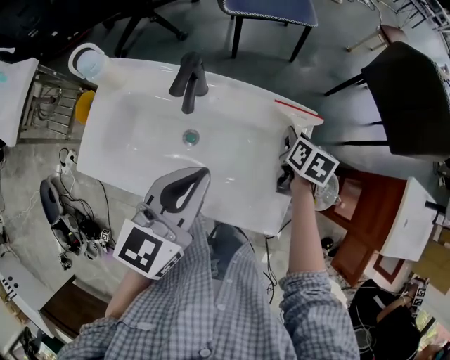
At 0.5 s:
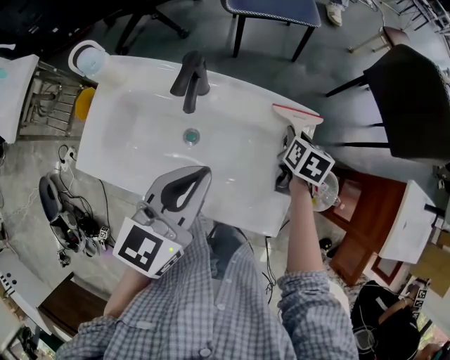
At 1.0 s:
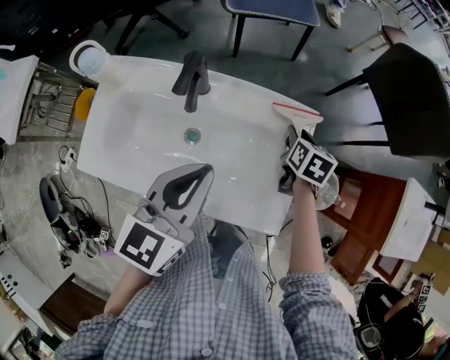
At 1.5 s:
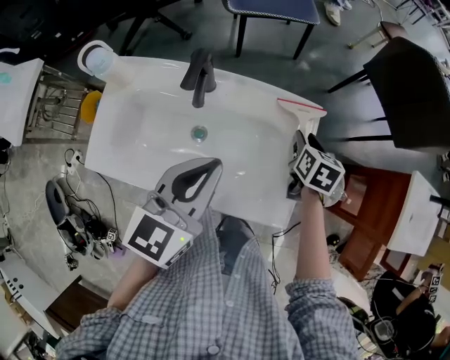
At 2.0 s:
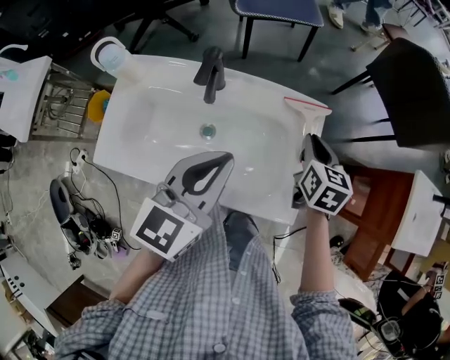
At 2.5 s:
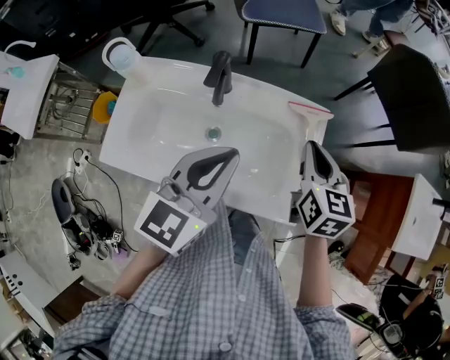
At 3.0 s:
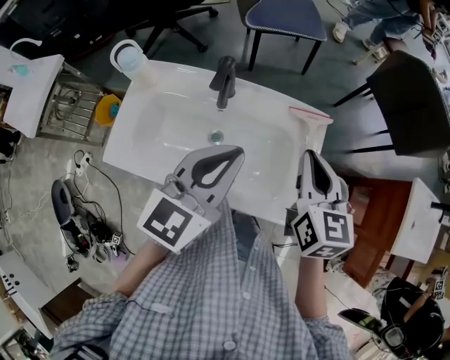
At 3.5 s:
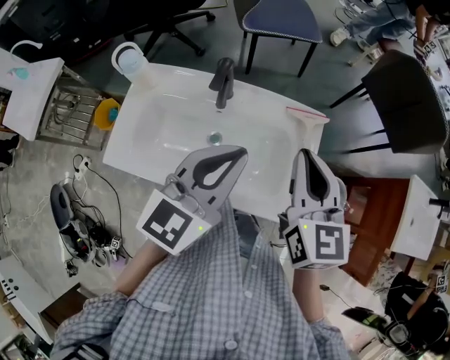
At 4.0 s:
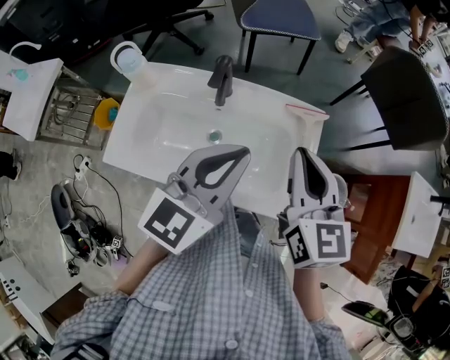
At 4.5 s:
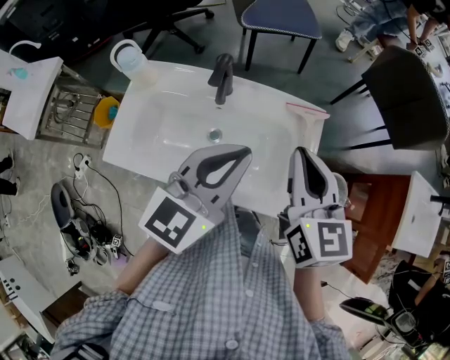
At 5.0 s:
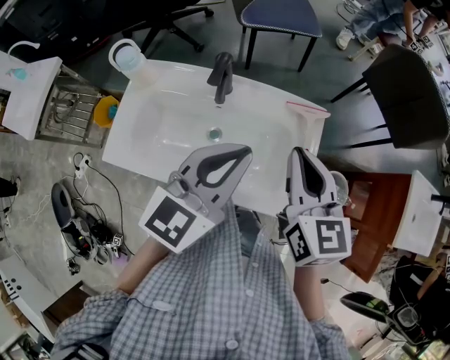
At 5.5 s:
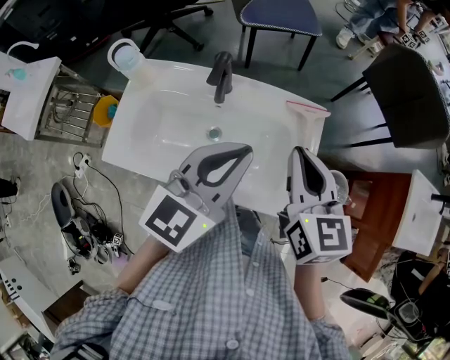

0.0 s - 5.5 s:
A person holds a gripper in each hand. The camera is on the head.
0.0 s - 2.0 s: The right gripper moves upward and backward, approximately 10 cm.
2.0 s - 3.5 s: The right gripper goes approximately 20 cm upward, backward and to the left, and changes its angle by roughly 30 degrees. The left gripper shifts by about 5 cm.
3.5 s - 5.5 s: The grippers move only a little.

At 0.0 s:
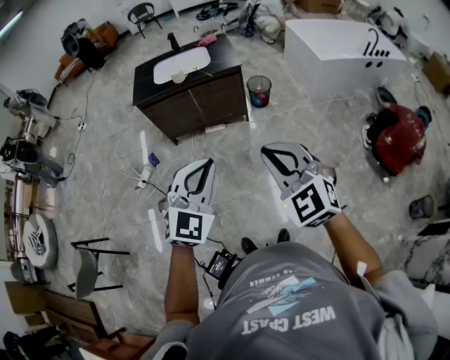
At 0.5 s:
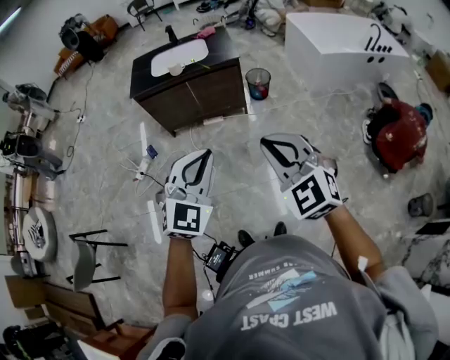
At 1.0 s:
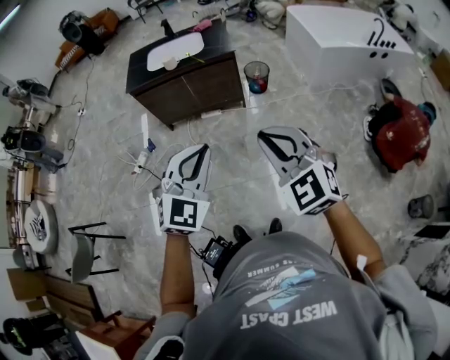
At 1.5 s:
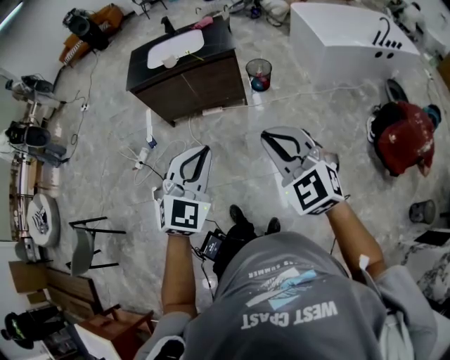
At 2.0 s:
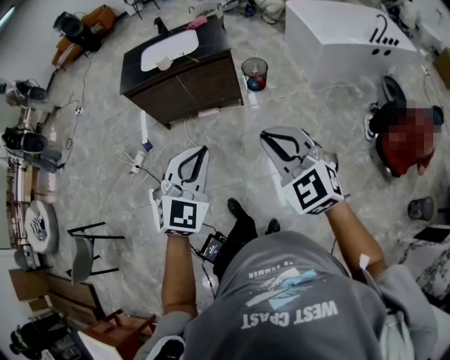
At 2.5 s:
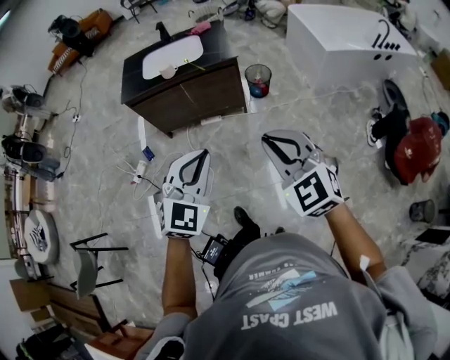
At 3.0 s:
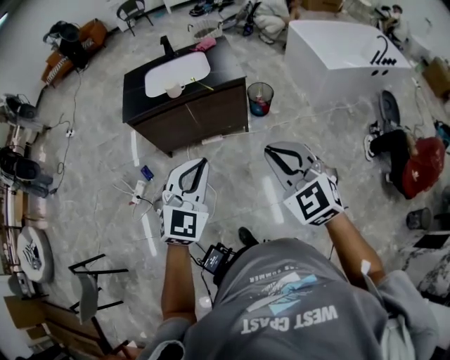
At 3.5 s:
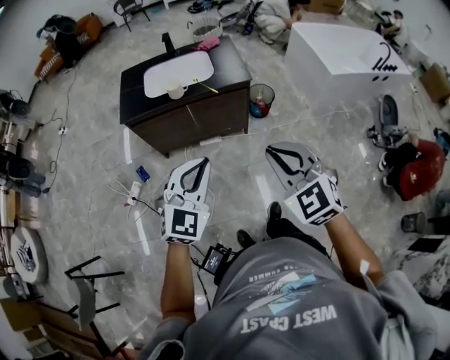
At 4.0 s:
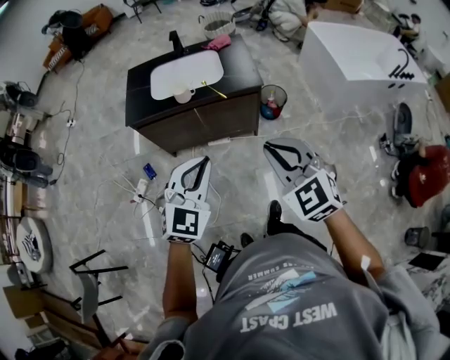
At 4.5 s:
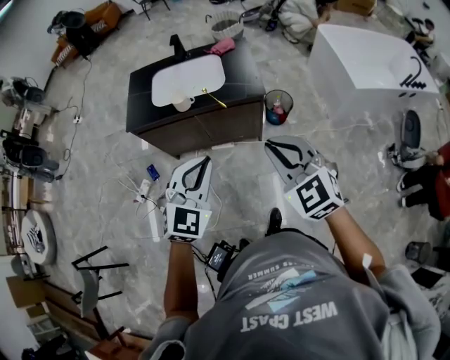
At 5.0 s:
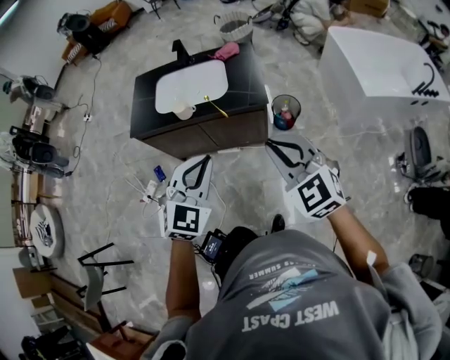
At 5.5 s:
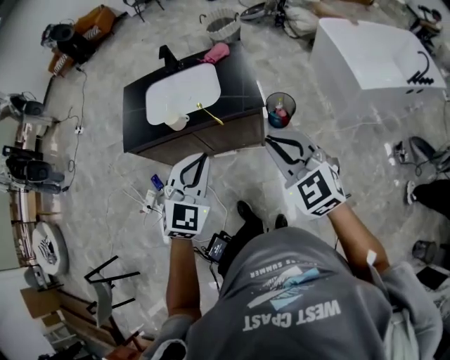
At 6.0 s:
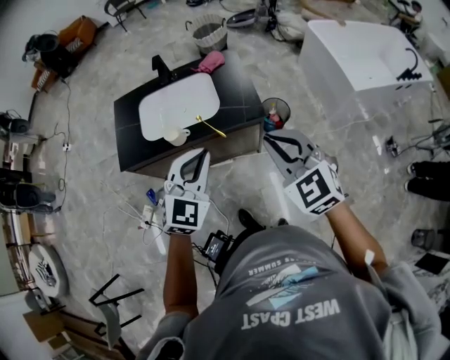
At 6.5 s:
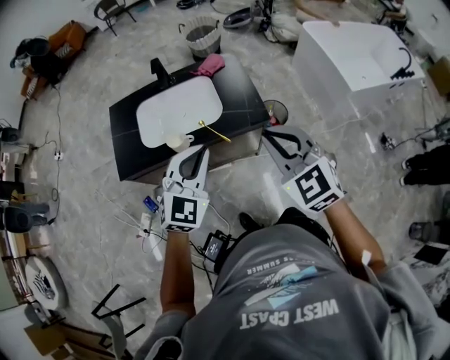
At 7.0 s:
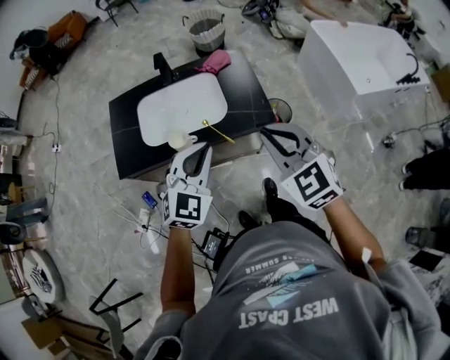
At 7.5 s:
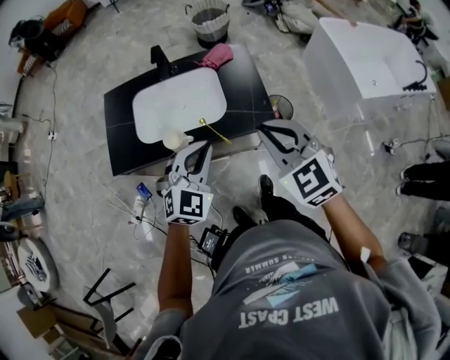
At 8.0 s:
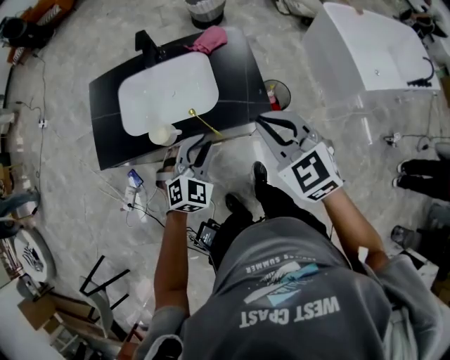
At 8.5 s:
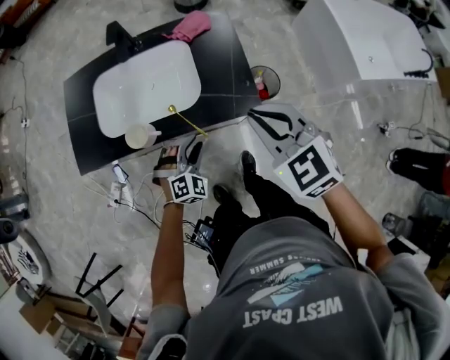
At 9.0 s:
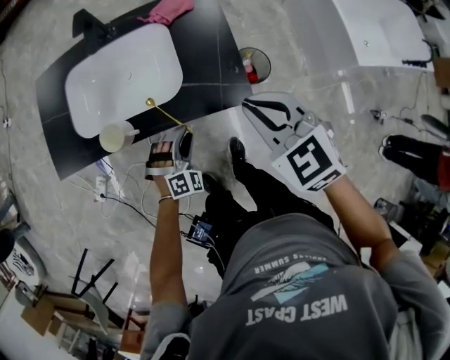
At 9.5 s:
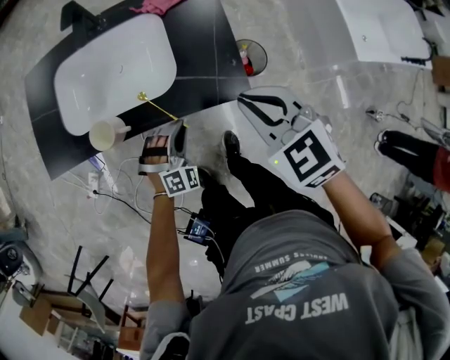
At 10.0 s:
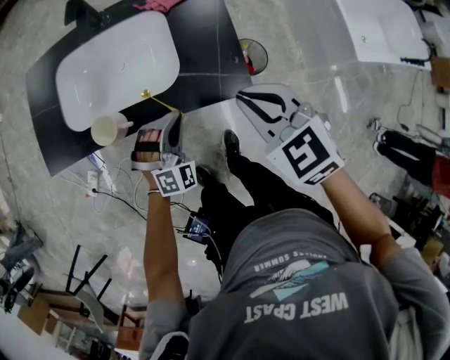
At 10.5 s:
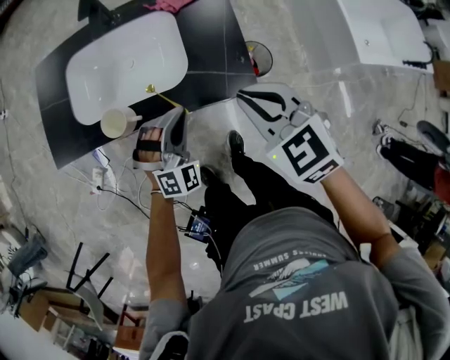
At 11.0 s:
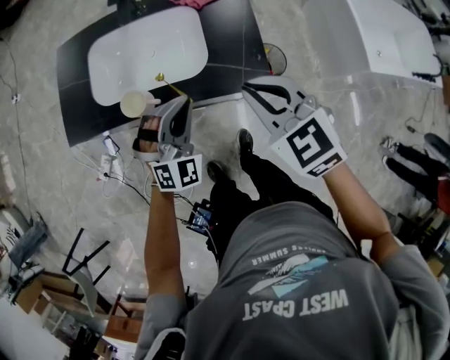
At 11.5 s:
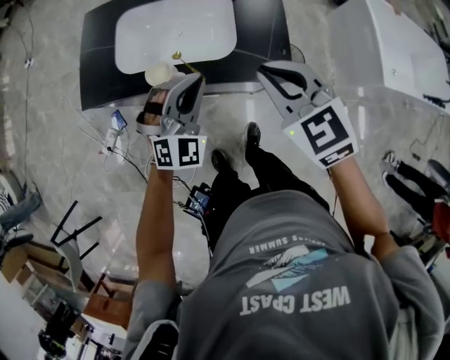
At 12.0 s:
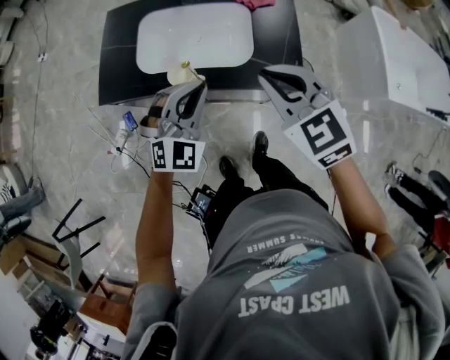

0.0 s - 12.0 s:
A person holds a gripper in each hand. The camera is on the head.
0.0 s - 2.0 s: Both grippers travel together to the right and forward, roughly 10 cm.
2.0 s - 4.0 s: Both grippers travel together forward and to the left, roughly 30 cm.
4.0 s - 6.0 s: Both grippers move forward, roughly 25 cm.
6.0 s - 8.0 s: The right gripper travels forward and downward by roughly 15 cm, while the left gripper heads downward and forward, covering roughly 20 cm, and opens up.
8.0 s - 10.0 s: The two grippers go about 15 cm downward. The left gripper swivels roughly 20 degrees, and closes its fingers.
10.0 s - 12.0 s: The right gripper is displaced to the left and upward by approximately 15 cm. Meanwhile the left gripper travels upward and to the left by some 20 cm, and turns by some 20 degrees.

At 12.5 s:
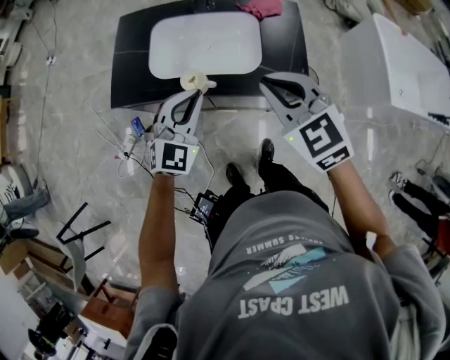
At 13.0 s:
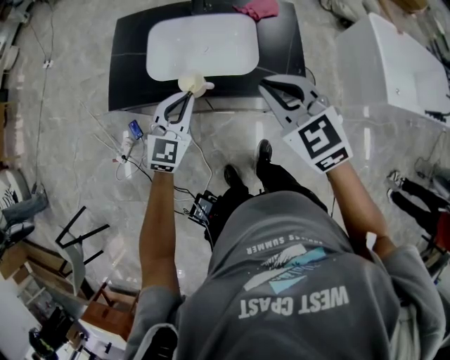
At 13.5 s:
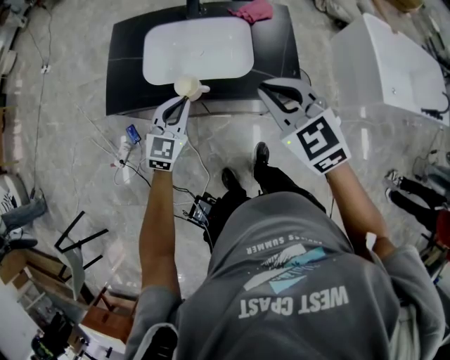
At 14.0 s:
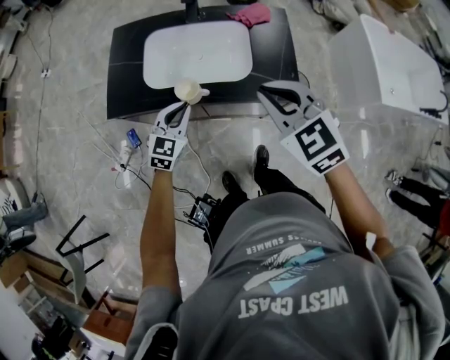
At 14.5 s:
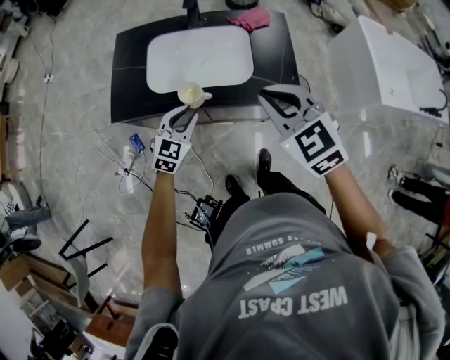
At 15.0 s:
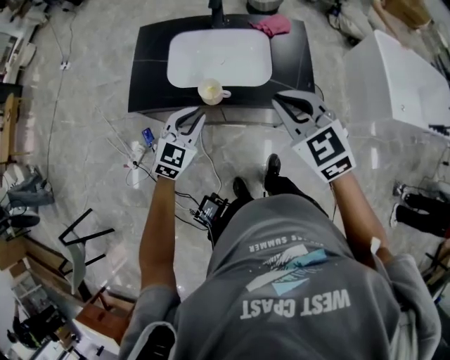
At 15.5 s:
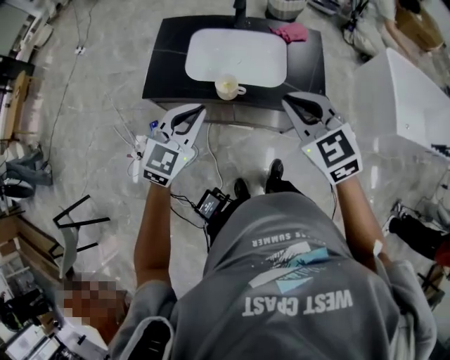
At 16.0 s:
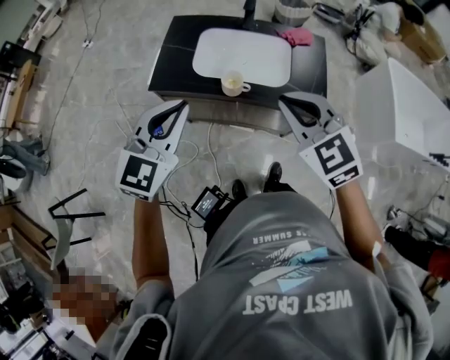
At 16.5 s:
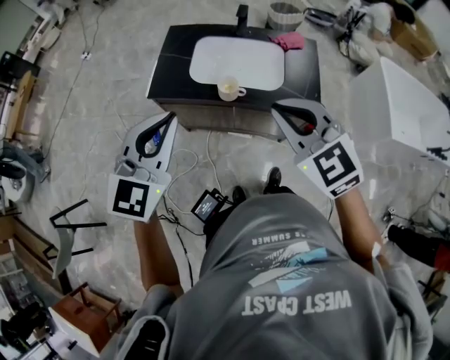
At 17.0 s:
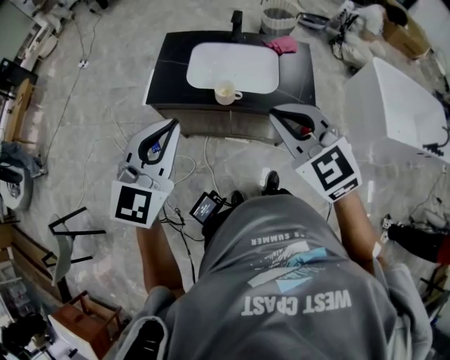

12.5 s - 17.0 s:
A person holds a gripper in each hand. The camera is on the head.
12.5 s - 14.5 s: The left gripper shifts approximately 10 cm downward, rotates some 20 degrees, and opens up.
14.5 s - 17.0 s: The right gripper goes roughly 20 cm backward, upward and to the left. Meanwhile the left gripper moves upward and backward, approximately 35 cm, swivels about 20 degrees, and closes.

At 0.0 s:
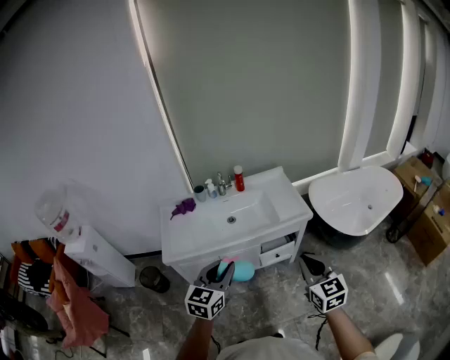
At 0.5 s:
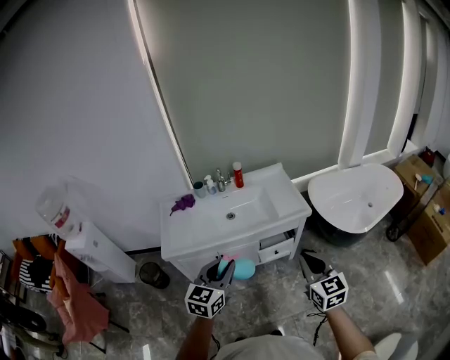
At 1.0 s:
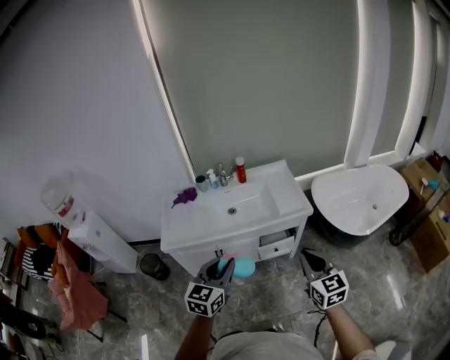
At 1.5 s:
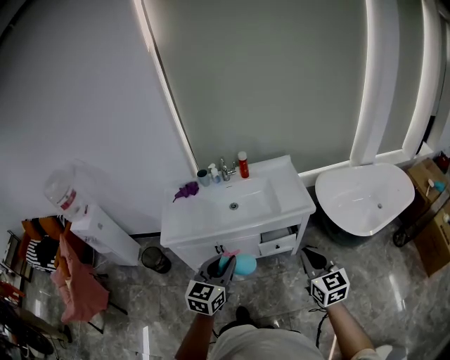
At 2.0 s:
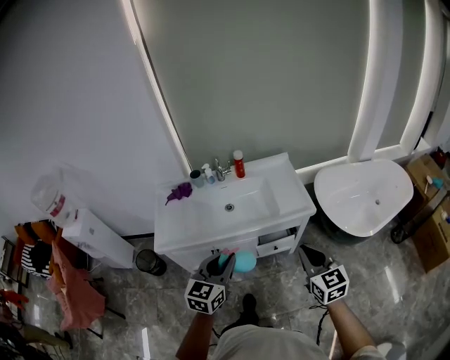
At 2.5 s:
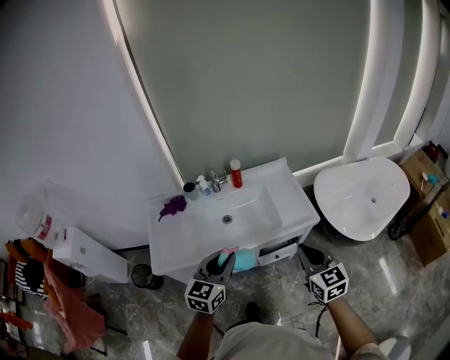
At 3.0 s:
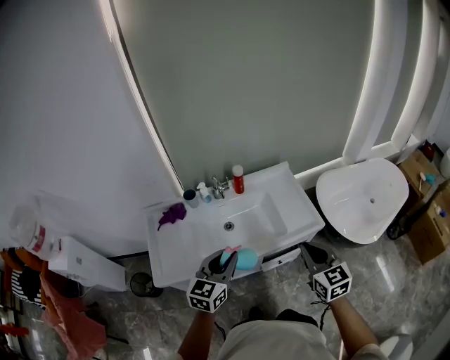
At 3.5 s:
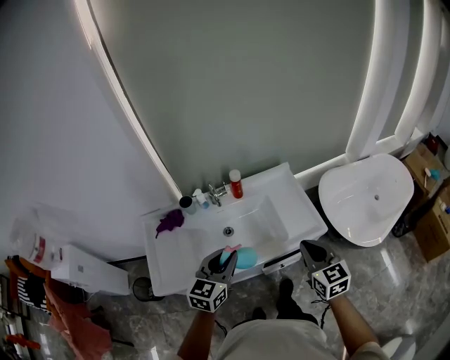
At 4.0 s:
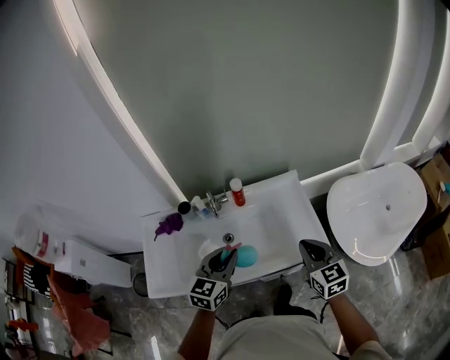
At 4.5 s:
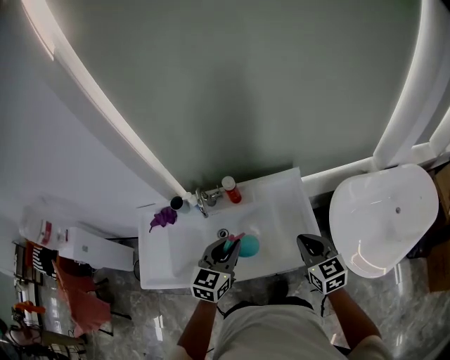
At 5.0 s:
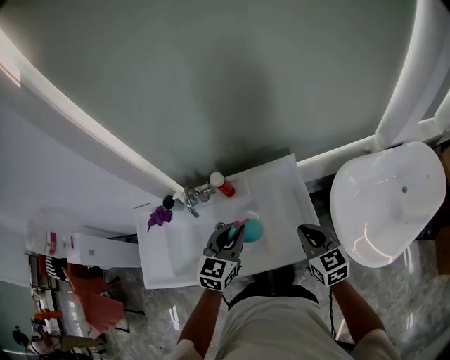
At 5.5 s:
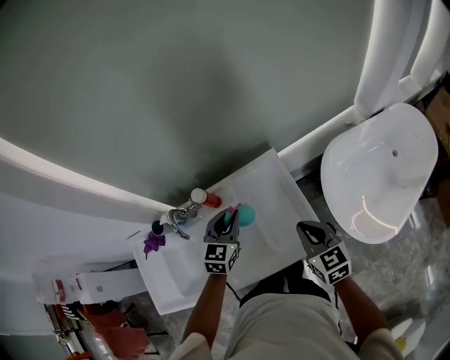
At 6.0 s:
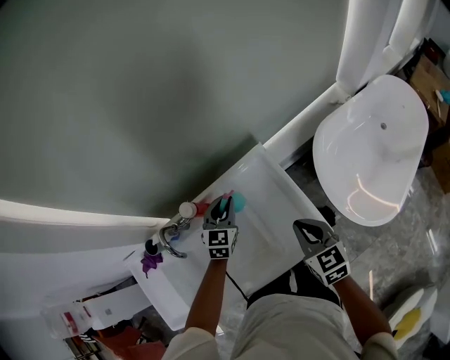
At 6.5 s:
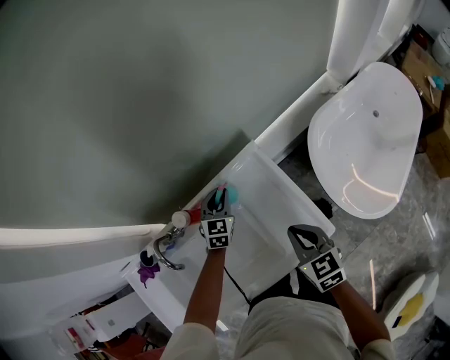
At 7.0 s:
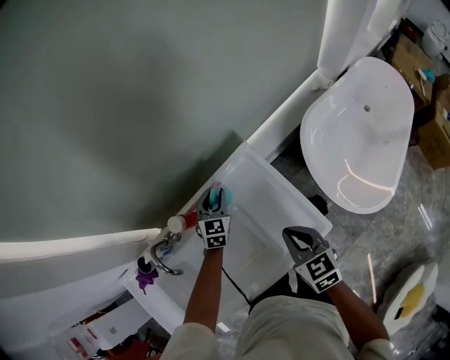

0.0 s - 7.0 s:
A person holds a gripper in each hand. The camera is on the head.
0.0 s - 2.0 s: The two grippers go some 10 cm forward.
2.0 s - 3.5 s: The two grippers go some 25 cm forward.
3.5 s - 5.0 s: The two grippers go some 25 cm forward and to the right.
5.0 s - 7.0 s: The left gripper travels forward and downward by roughly 35 cm; the right gripper shifts some 10 cm downward, and rotates approximately 20 degrees.
